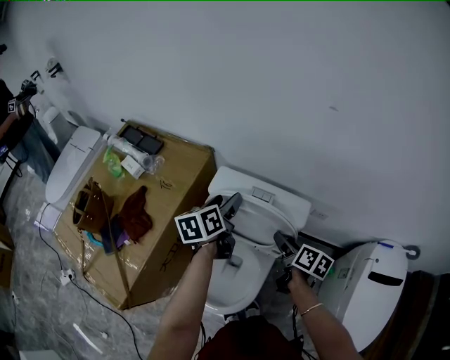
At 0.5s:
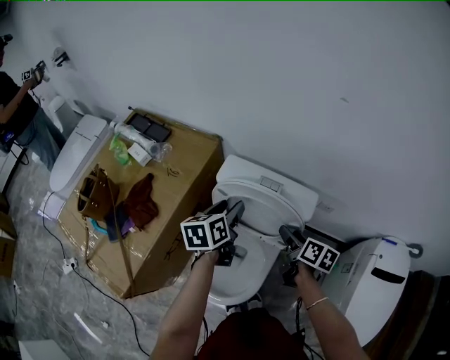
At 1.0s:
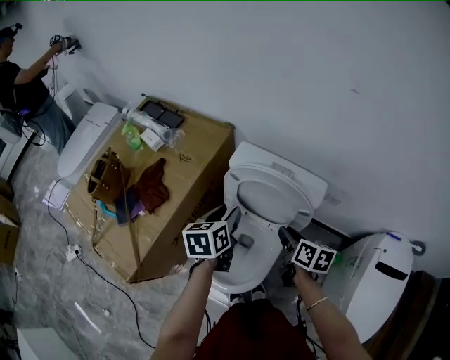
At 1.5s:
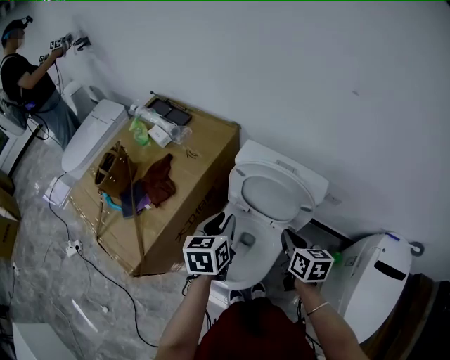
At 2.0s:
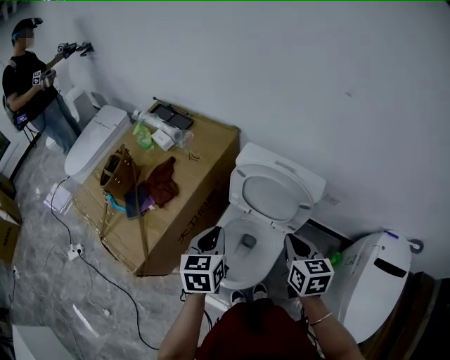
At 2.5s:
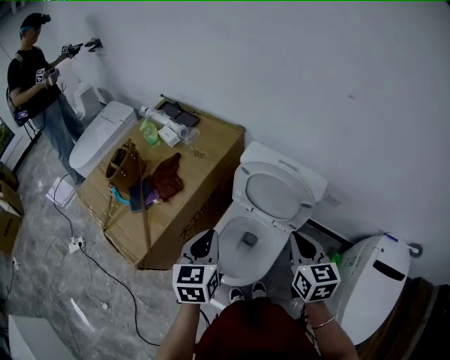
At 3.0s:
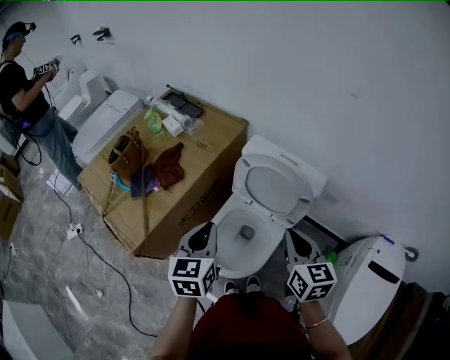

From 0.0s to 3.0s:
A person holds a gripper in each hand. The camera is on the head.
From 0.0s to 1.5s: The right gripper is displaced backward and to the left by about 10 cm, turns by some 30 degrees, and closes up. Meanwhile the left gripper travels backward and to the left by approximately 20 cm, and closes up.
From 1.5s to 3.0s: The left gripper goes approximately 15 cm backward and upward, while the right gripper is displaced upward and backward by approximately 15 cm, and swivels some 20 degrees.

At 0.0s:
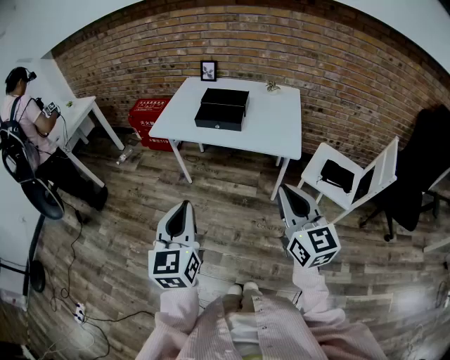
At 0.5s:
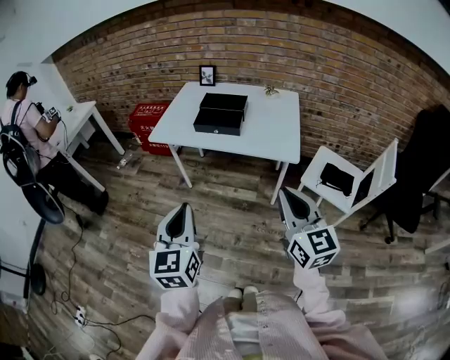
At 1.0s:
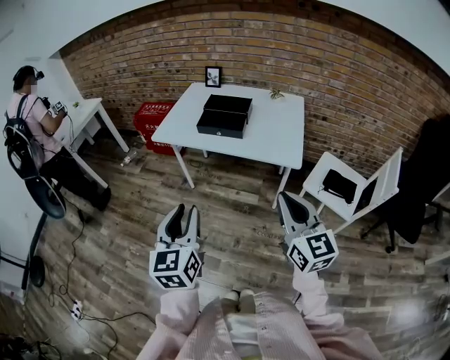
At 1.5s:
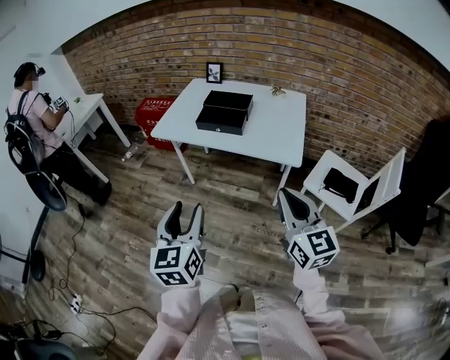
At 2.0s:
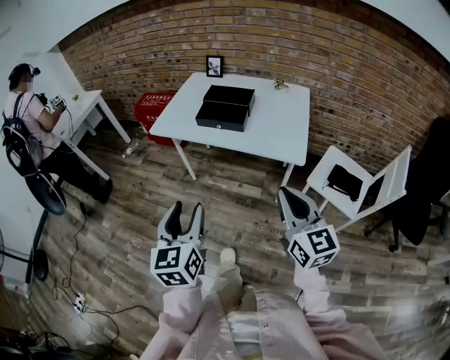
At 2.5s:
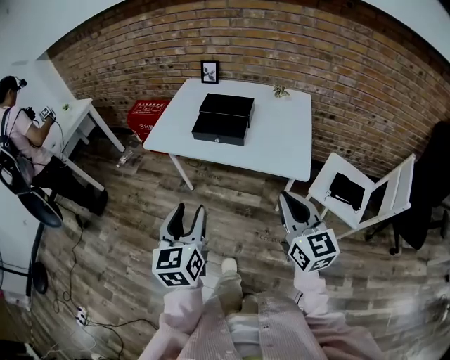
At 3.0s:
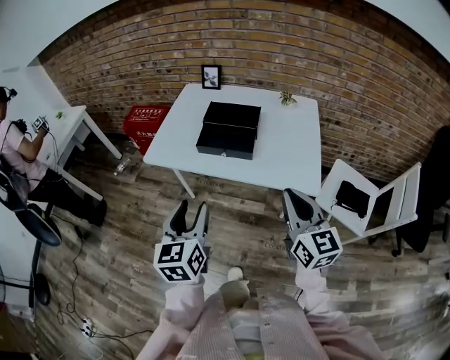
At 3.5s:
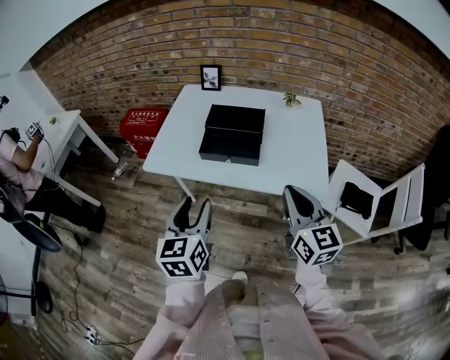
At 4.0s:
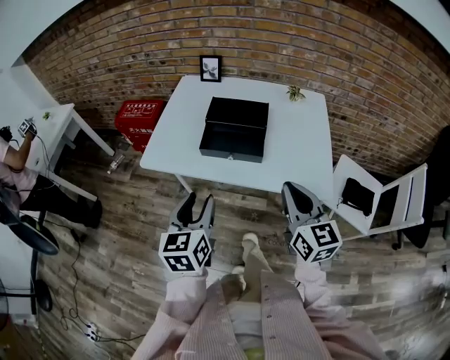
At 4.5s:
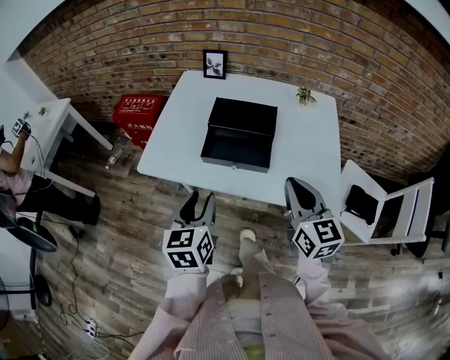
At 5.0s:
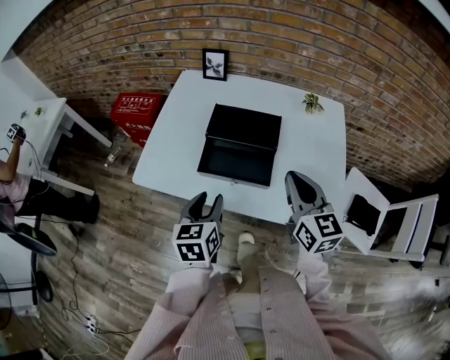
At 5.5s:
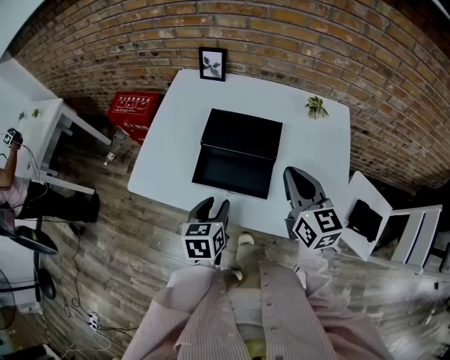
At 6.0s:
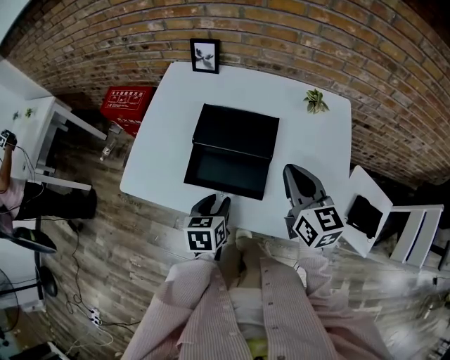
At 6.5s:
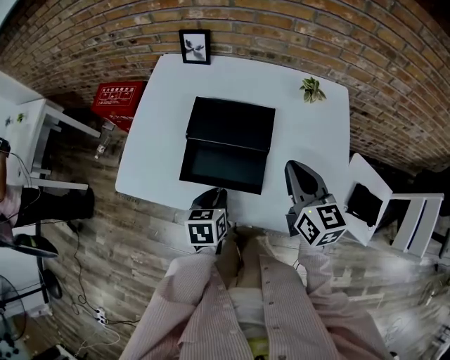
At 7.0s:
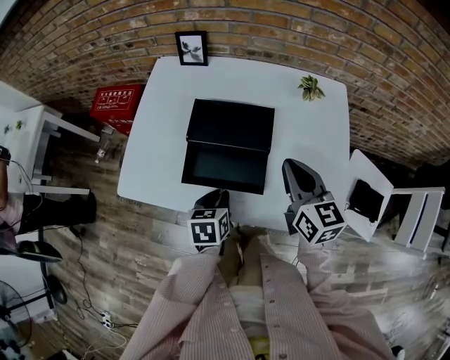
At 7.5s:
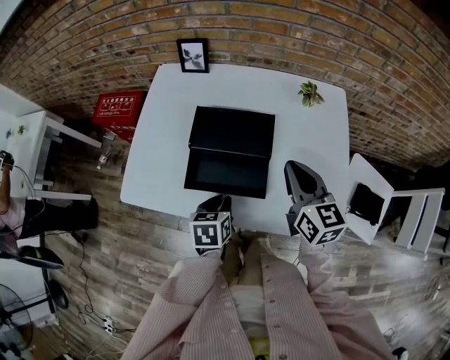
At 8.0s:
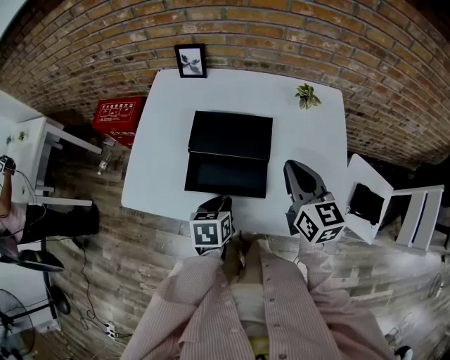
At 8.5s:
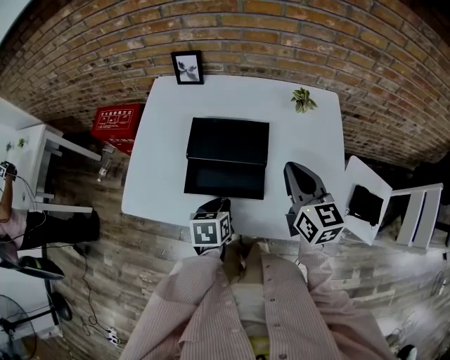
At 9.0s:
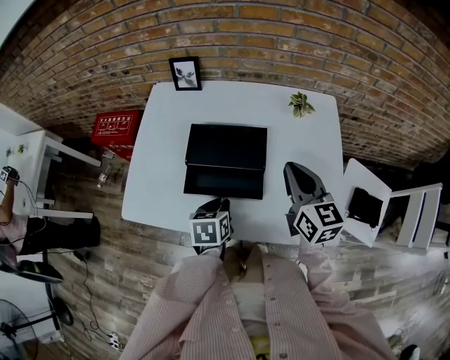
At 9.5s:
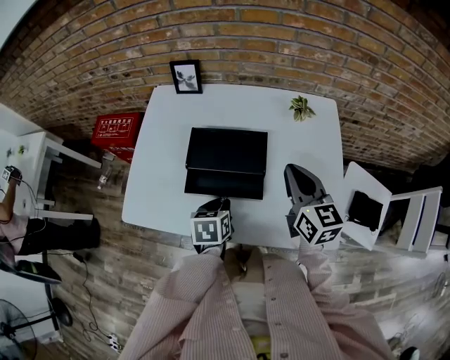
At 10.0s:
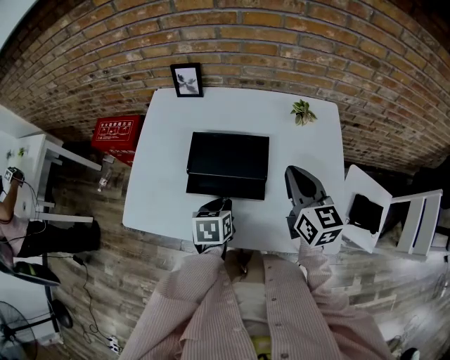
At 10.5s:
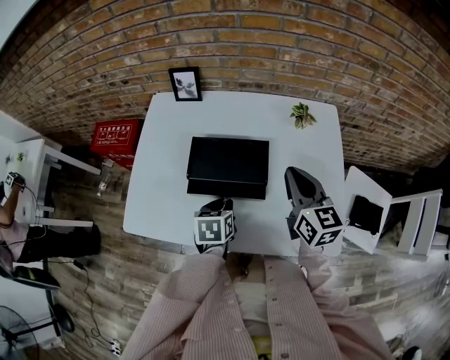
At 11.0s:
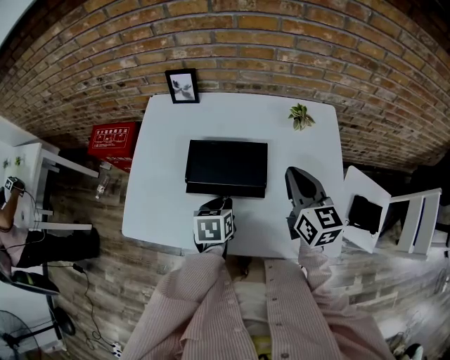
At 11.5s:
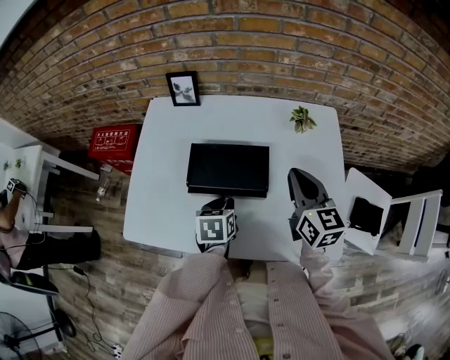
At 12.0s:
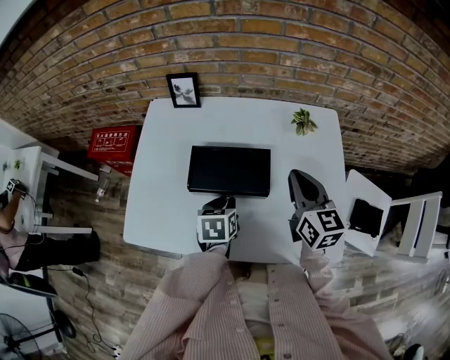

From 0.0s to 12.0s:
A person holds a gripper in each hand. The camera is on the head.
From 0.0s to 2.0s: The right gripper moves some 5 cm. Meanwhile the left gripper changes place by roughly 5 cm, and opens.
From 2.0s to 4.0s: Both grippers move forward, some 25 cm.
From 4.0s to 6.0s: The left gripper heads forward, downward and to the right, covering some 25 cm, and swivels roughly 30 degrees. Meanwhile the right gripper moves forward, about 25 cm.
From 6.0s to 8.0s: The left gripper closes its fingers.
From 8.0s to 10.0s: The left gripper moves forward, approximately 5 cm.
From 10.0s to 12.0s: The left gripper shifts about 5 cm forward.

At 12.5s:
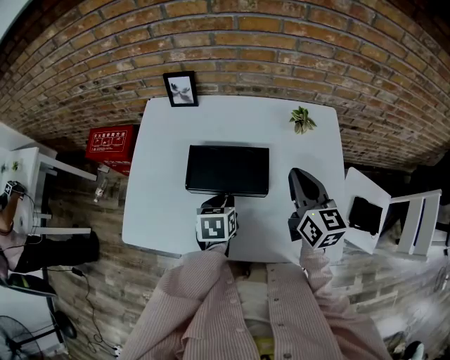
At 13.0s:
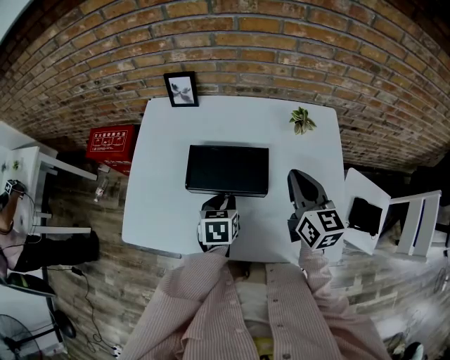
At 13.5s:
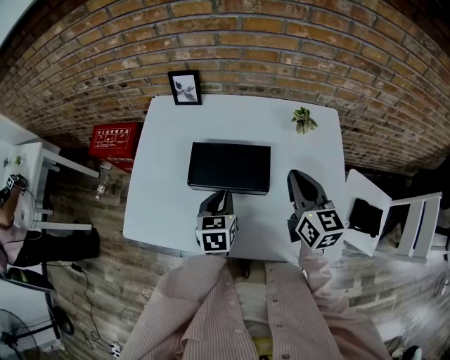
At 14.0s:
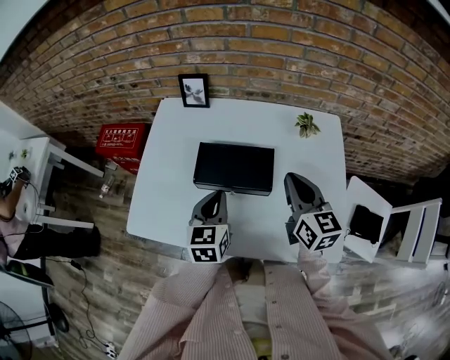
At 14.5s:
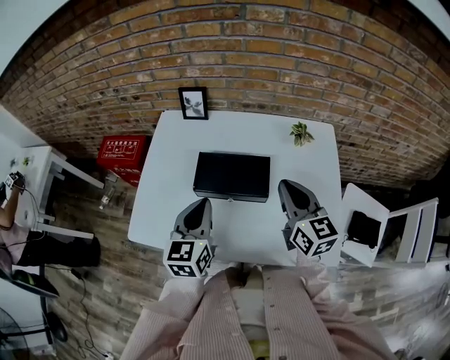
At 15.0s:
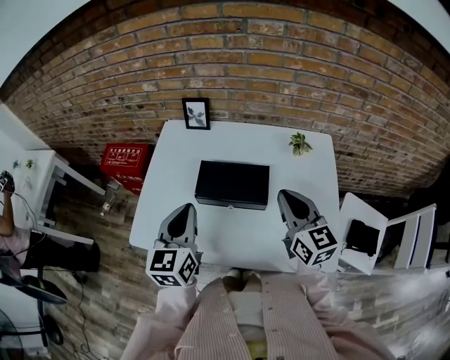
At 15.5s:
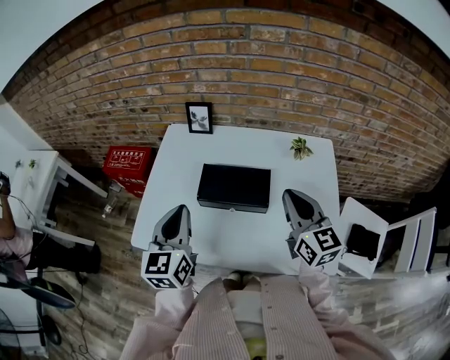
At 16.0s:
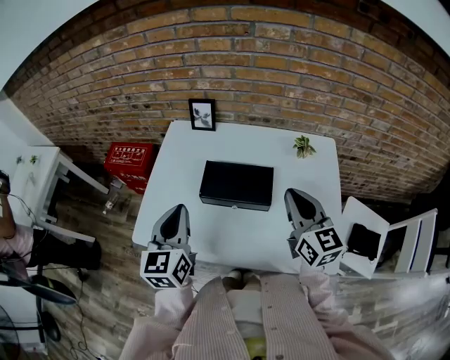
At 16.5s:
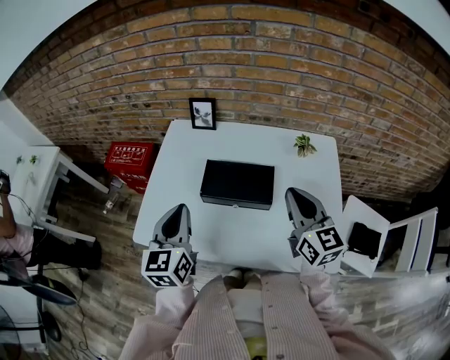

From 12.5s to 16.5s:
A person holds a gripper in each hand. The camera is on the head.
From 12.5s to 14.5s: The left gripper heads upward, covering approximately 15 cm, and points its fingers approximately 30 degrees further upward. The right gripper moves about 5 cm.
From 14.5s to 16.5s: The left gripper is displaced to the left and upward by approximately 10 cm.

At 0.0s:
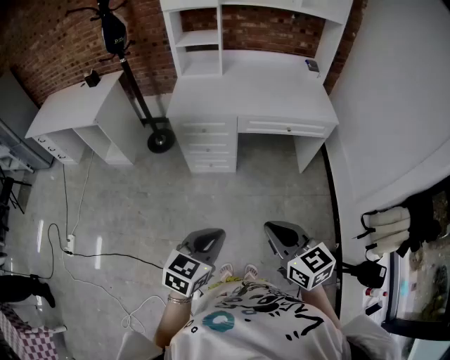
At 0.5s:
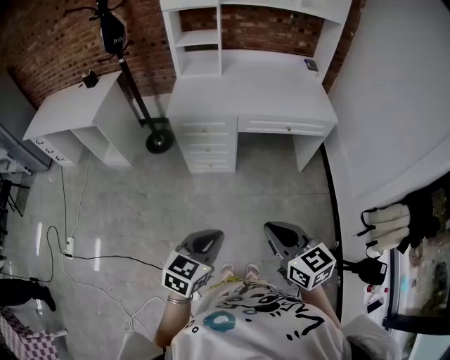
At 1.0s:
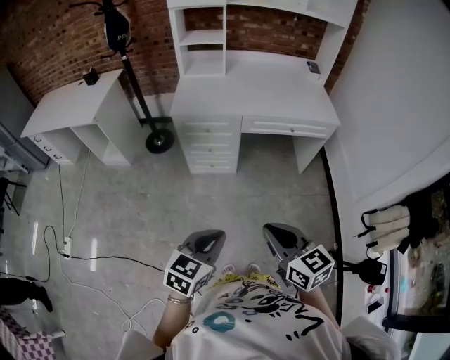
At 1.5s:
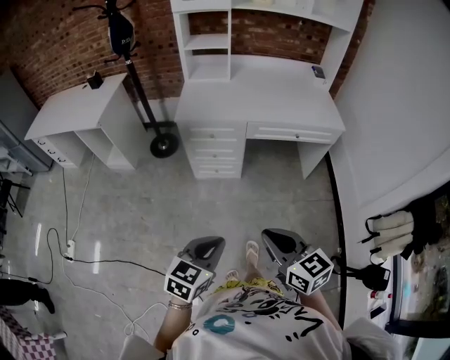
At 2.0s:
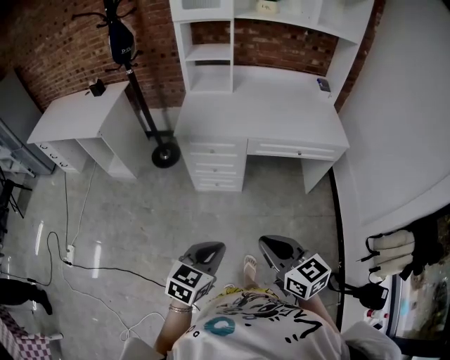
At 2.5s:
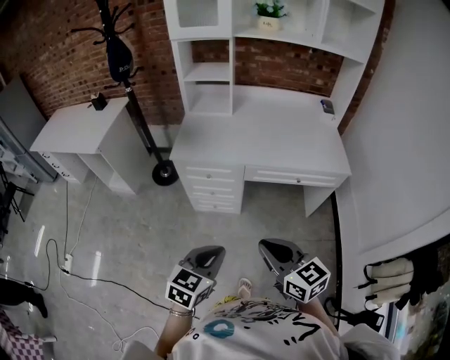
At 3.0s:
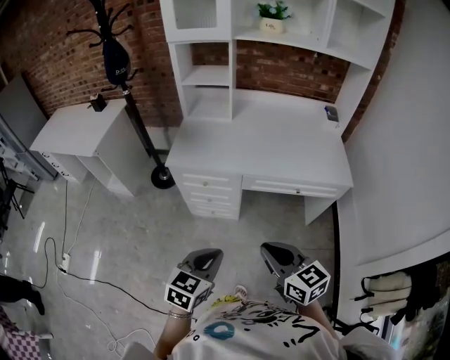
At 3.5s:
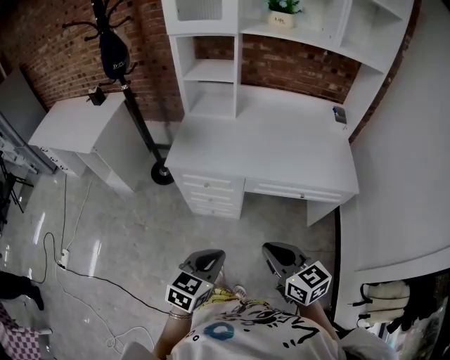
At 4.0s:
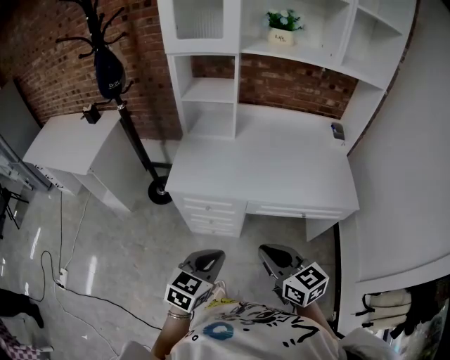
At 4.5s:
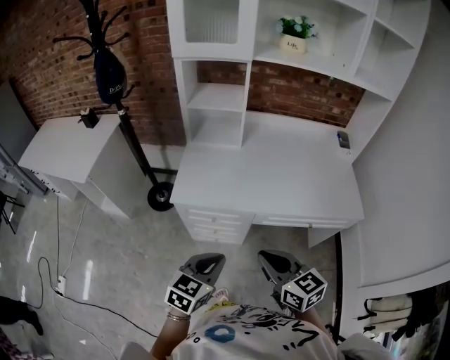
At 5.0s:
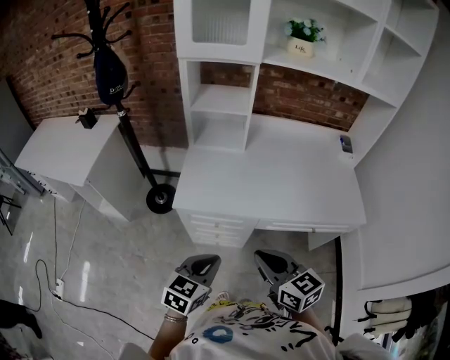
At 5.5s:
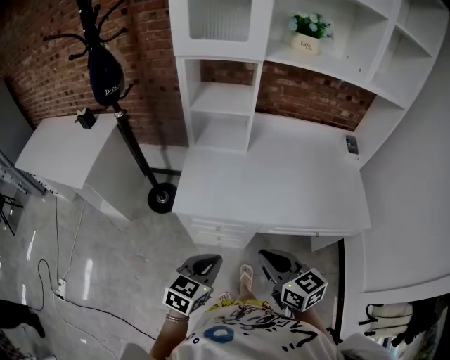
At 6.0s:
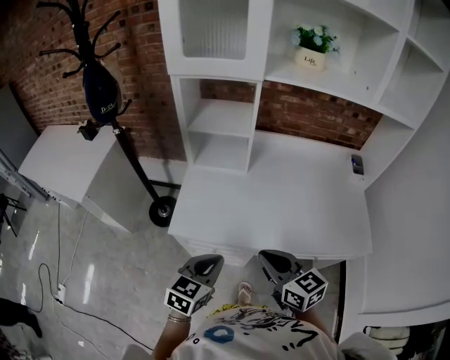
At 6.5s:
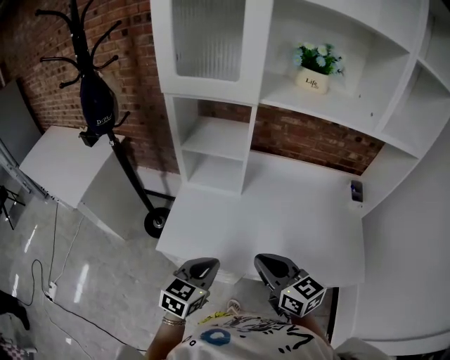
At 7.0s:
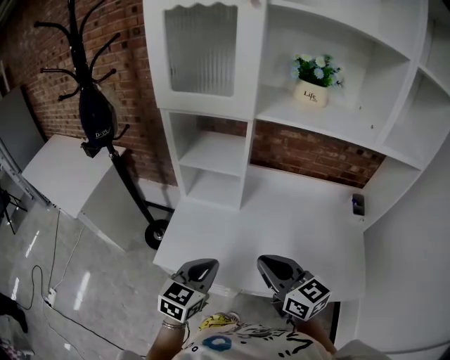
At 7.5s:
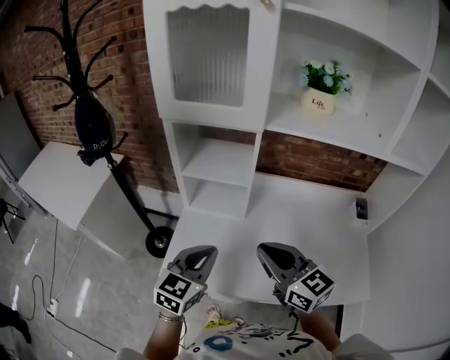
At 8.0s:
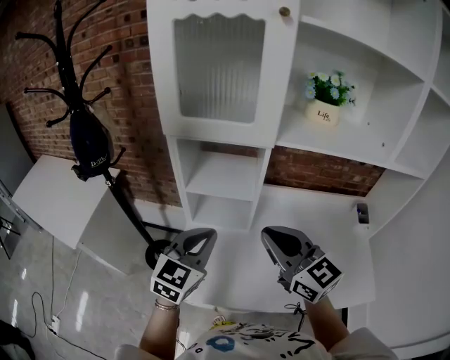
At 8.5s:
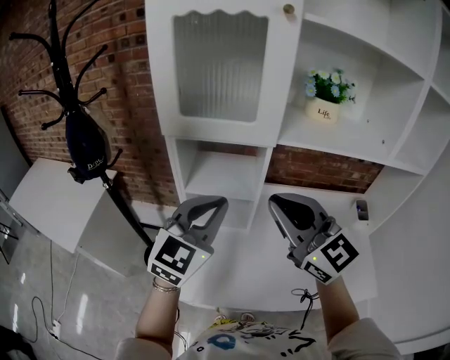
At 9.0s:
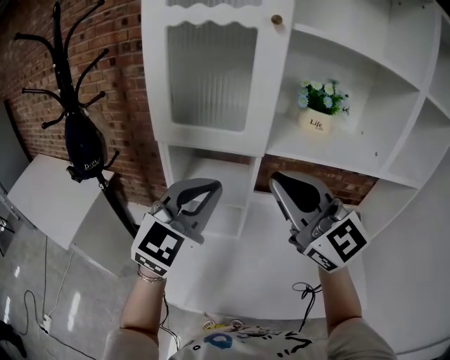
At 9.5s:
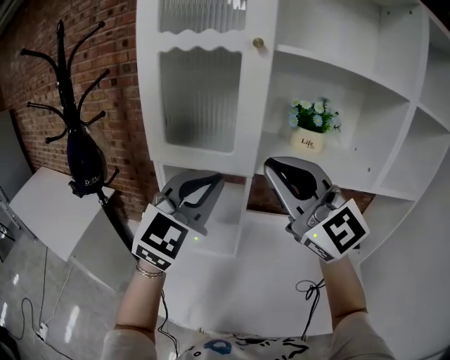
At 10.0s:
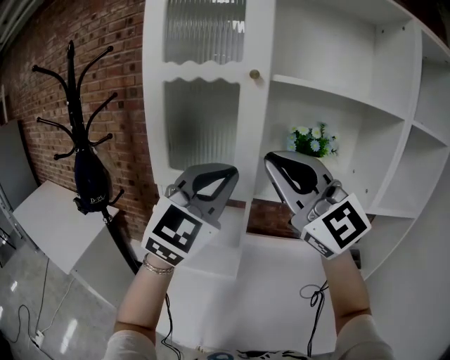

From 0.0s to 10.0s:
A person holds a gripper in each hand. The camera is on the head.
From 0.0s to 2.0s: The two grippers go roughly 5 cm forward.
From 2.0s to 4.0s: Both grippers move forward, approximately 30 cm.
From 4.0s to 6.0s: The two grippers go roughly 20 cm forward.
From 6.0s to 8.0s: The two grippers go some 30 cm forward and upward. The right gripper changes its angle by some 20 degrees, while the left gripper rotates approximately 20 degrees.
From 8.0s to 10.0s: The two grippers go approximately 30 cm upward. The right gripper turns by about 40 degrees. Meanwhile the left gripper swivels roughly 30 degrees.
